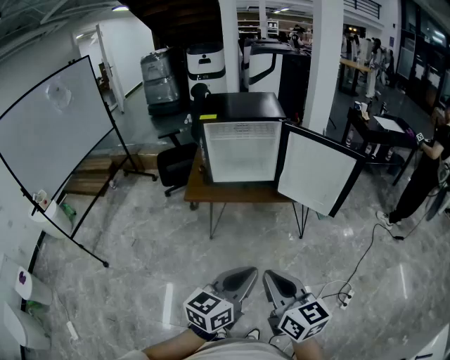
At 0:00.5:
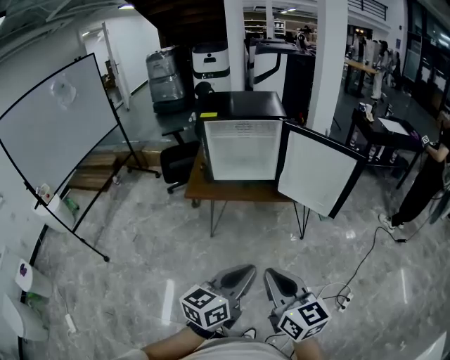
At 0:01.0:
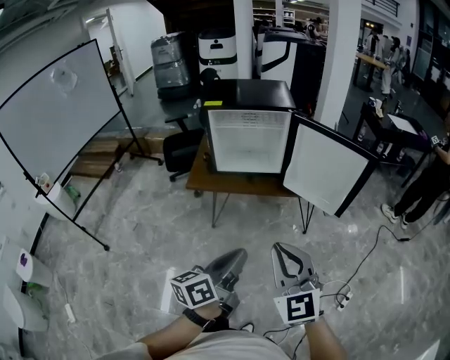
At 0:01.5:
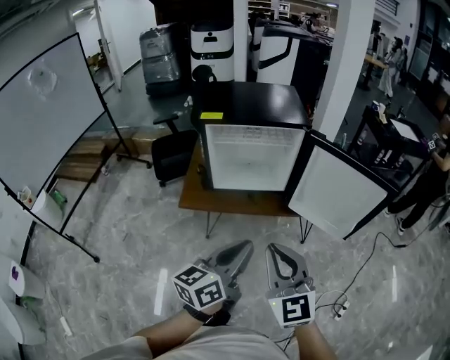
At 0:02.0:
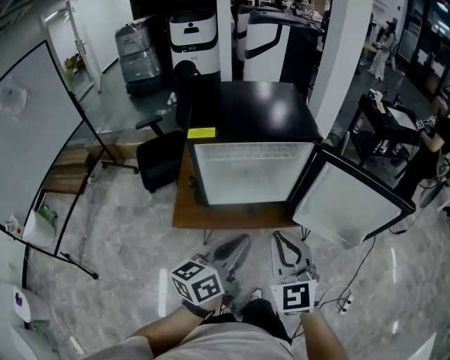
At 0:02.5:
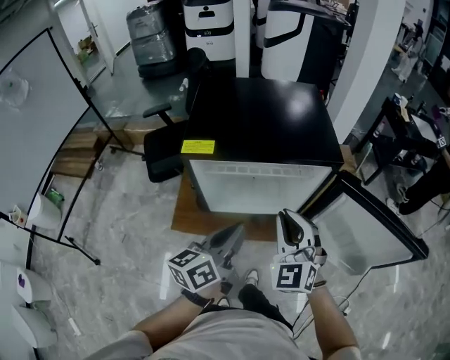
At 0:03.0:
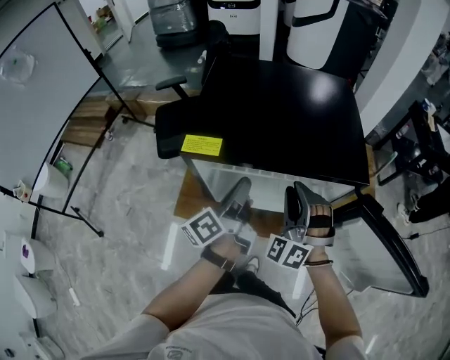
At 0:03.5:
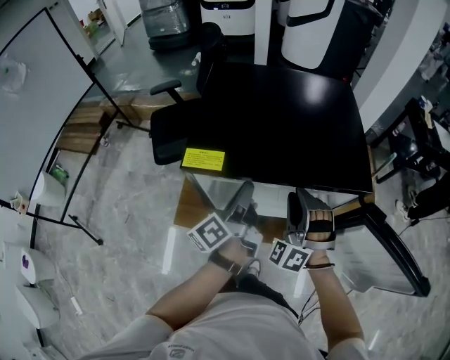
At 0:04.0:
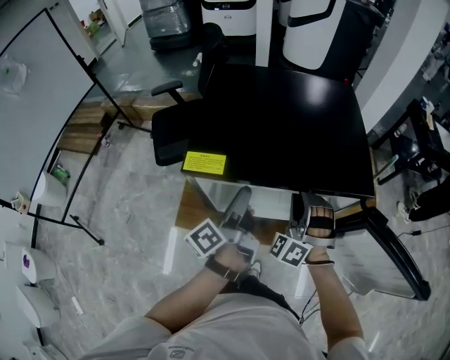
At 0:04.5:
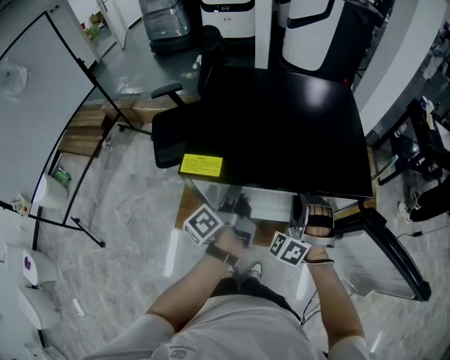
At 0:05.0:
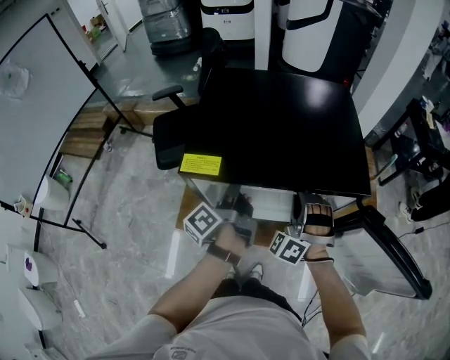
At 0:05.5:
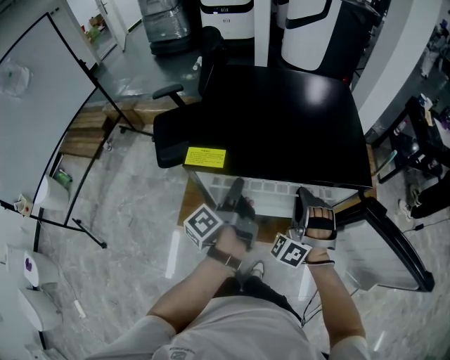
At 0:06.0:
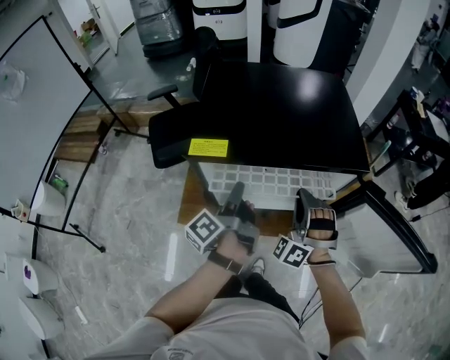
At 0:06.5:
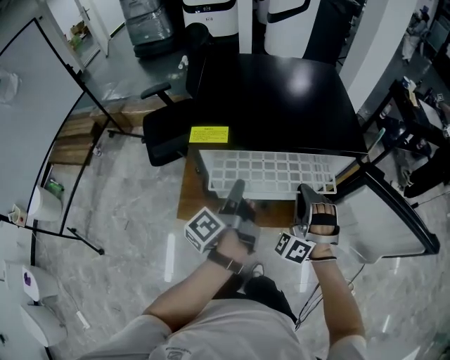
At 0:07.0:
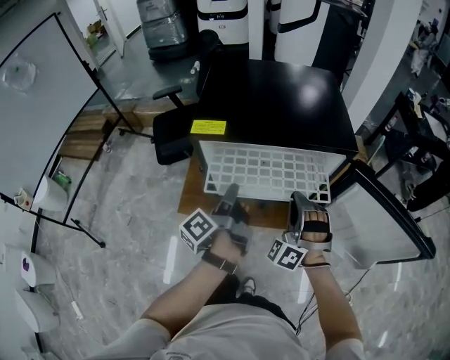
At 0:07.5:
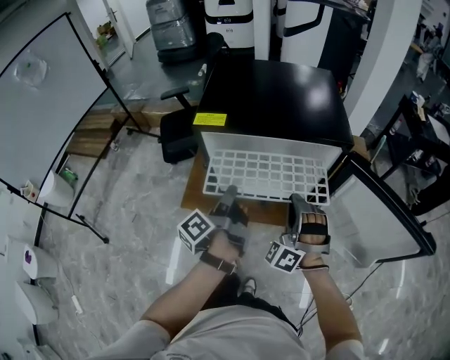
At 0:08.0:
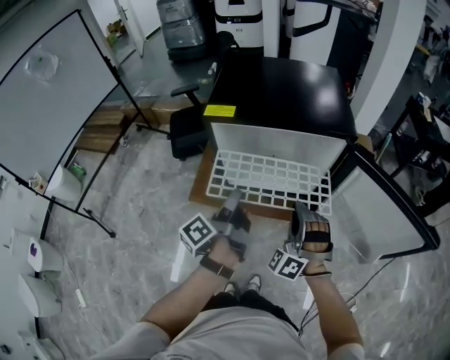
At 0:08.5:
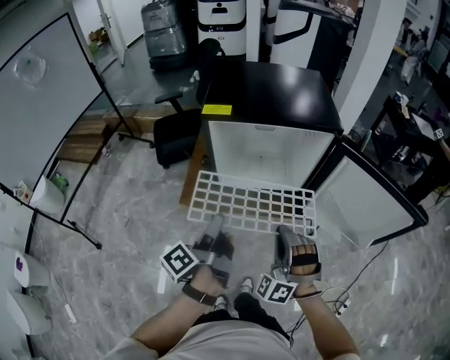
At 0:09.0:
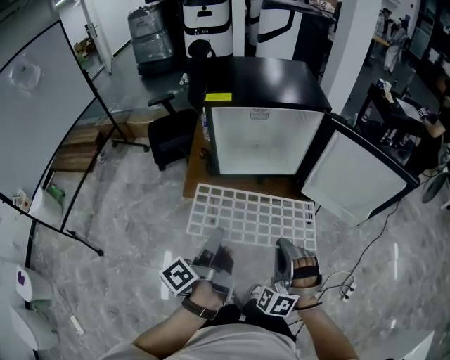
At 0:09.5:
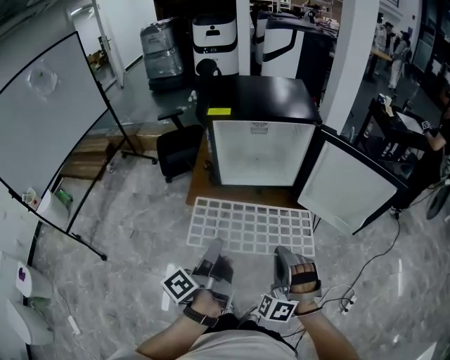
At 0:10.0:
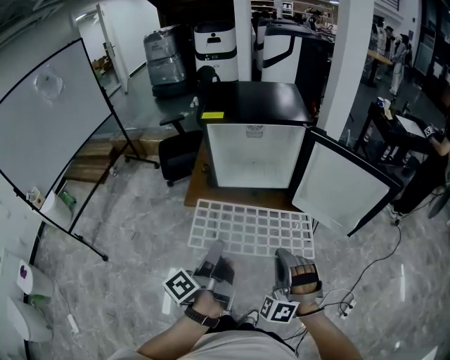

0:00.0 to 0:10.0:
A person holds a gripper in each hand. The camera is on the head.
0:00.0 to 0:02.0: Both grippers move forward, some 40 cm. The right gripper rotates roughly 40 degrees.
0:02.0 to 0:04.0: Both grippers travel together forward, about 30 cm. The left gripper turns by roughly 40 degrees, while the right gripper rolls counterclockwise, seen from behind, by roughly 50 degrees, and opens its fingers.
0:04.0 to 0:06.0: The right gripper shifts roughly 5 cm backward, and closes up.
0:06.0 to 0:08.0: Both grippers move backward, roughly 15 cm.
0:08.0 to 0:10.0: Both grippers move backward, approximately 25 cm.

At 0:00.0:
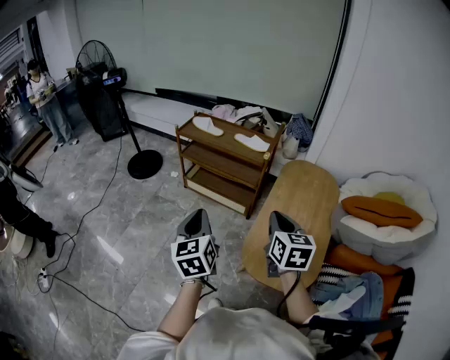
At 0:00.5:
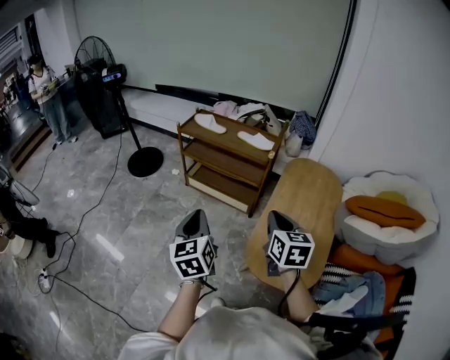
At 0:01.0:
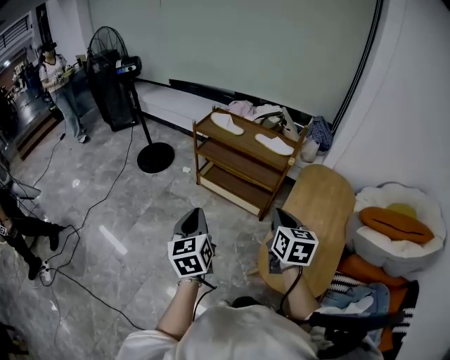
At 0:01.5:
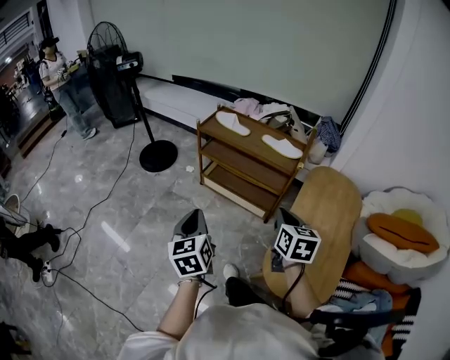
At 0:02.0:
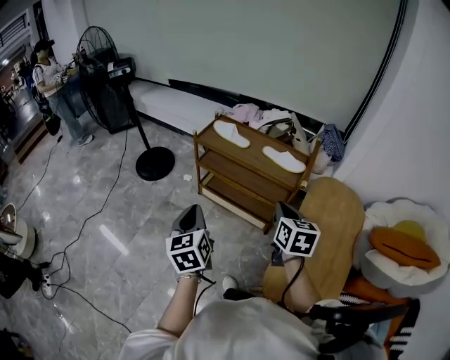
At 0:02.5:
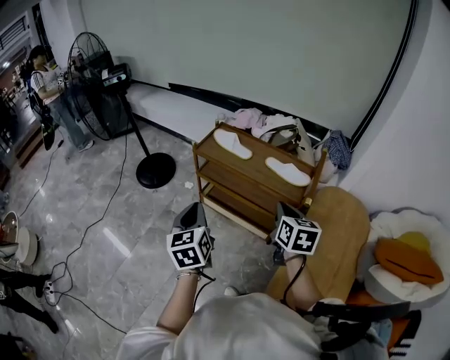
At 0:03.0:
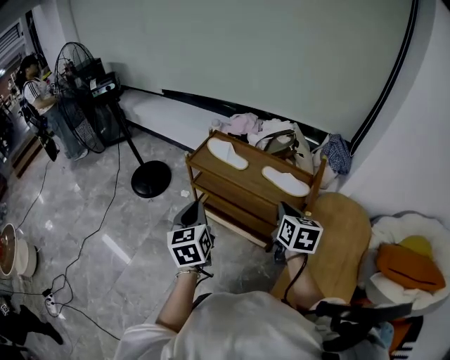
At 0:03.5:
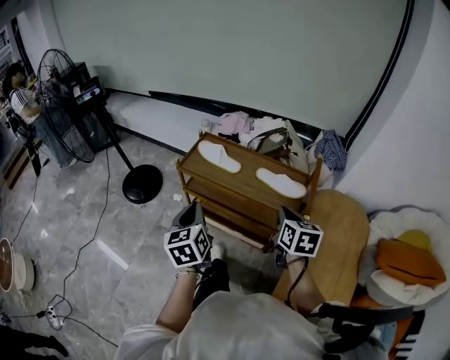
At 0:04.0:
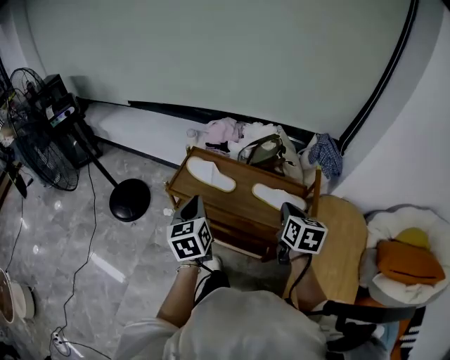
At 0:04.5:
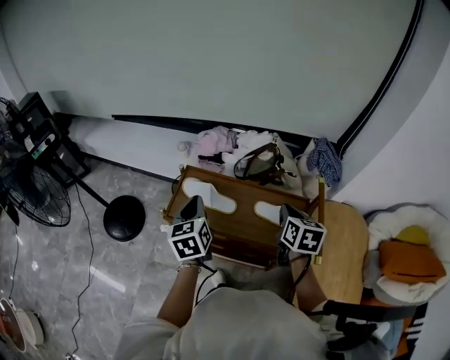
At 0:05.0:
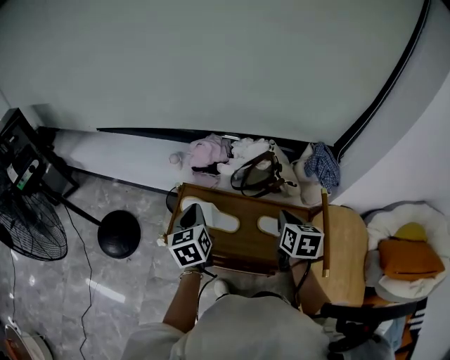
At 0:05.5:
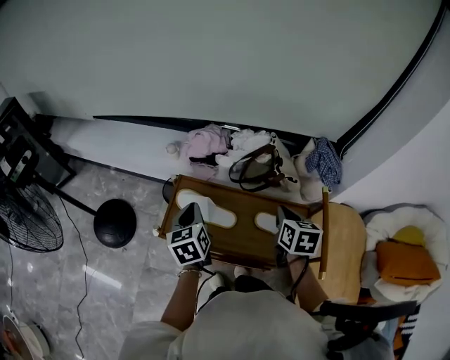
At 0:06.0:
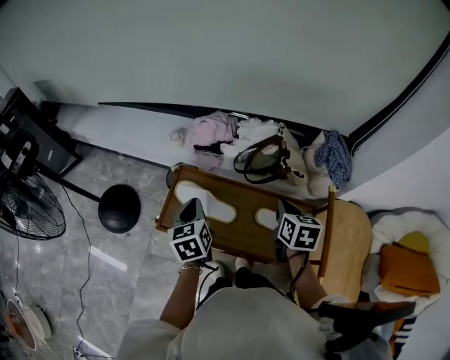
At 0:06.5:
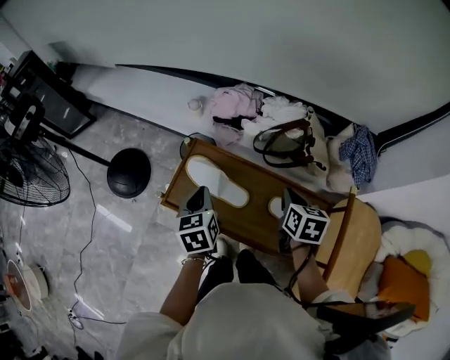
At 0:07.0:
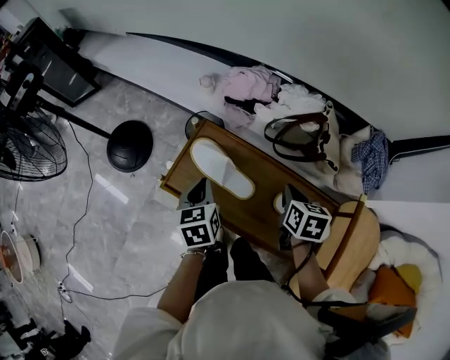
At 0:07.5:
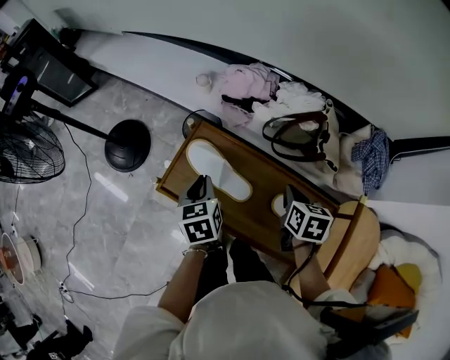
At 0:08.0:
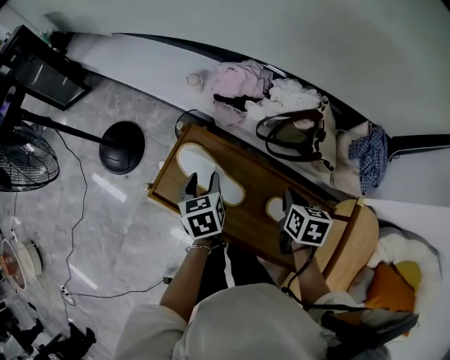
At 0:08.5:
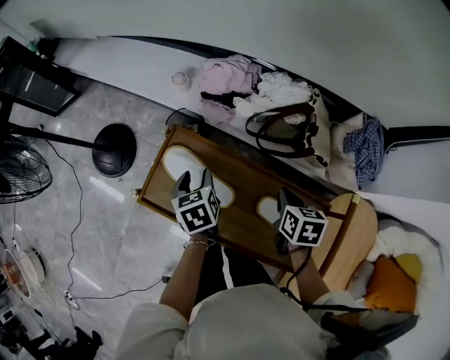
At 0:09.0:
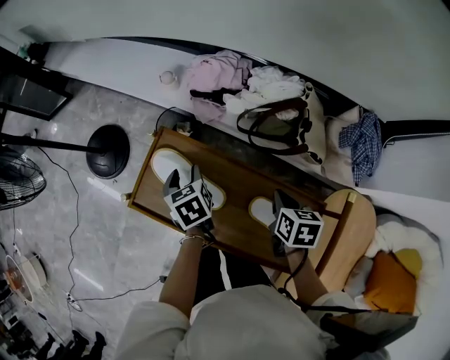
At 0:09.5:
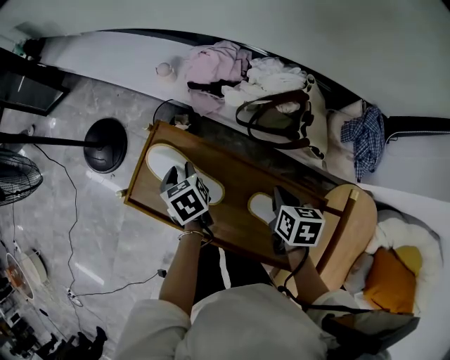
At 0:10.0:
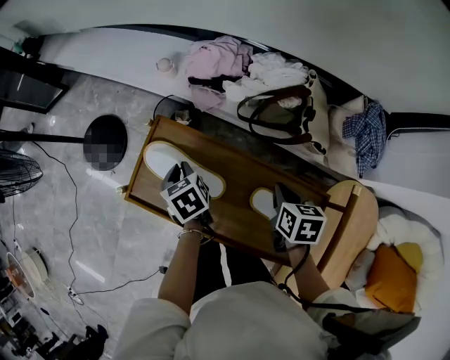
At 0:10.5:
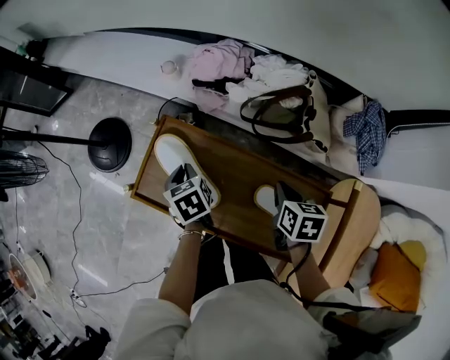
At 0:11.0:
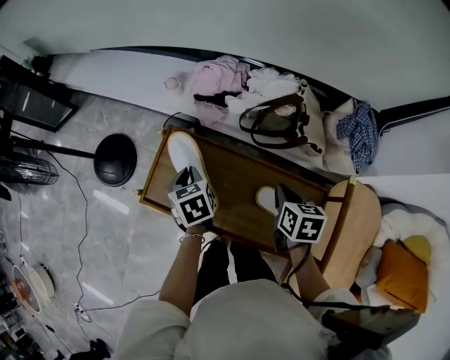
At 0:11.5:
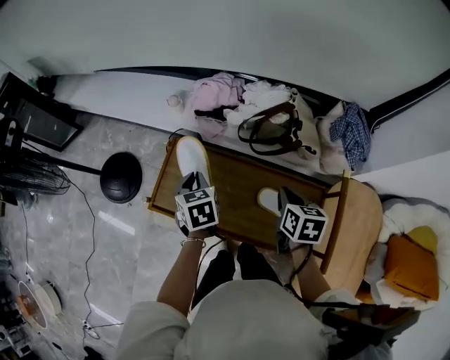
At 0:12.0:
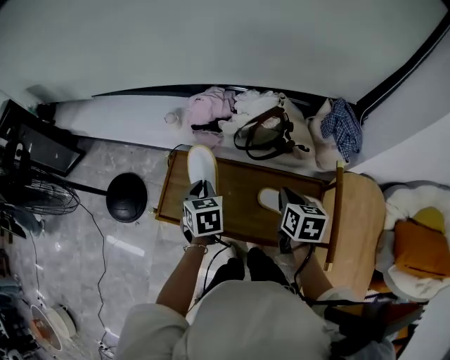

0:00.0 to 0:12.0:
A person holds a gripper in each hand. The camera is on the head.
0:00.0 to 0:02.0: The right gripper travels forward by approximately 25 cm, while the left gripper shifts some 25 cm forward and to the left.
0:02.0 to 0:04.0: Both grippers move forward, roughly 30 cm.
0:04.0 to 0:06.0: The left gripper shifts some 20 cm forward and downward. The right gripper goes about 20 cm forward.
0:06.0 to 0:08.0: Both grippers travel together downward, roughly 10 cm. The left gripper opens.
0:08.0 to 0:10.0: The left gripper is displaced downward by some 5 cm, and closes its fingers.
0:10.0 to 0:12.0: The two grippers go approximately 10 cm upward. The left gripper turns by some 40 degrees.

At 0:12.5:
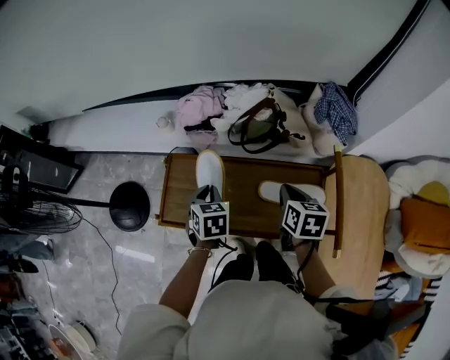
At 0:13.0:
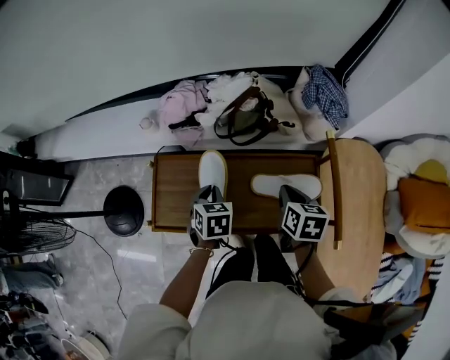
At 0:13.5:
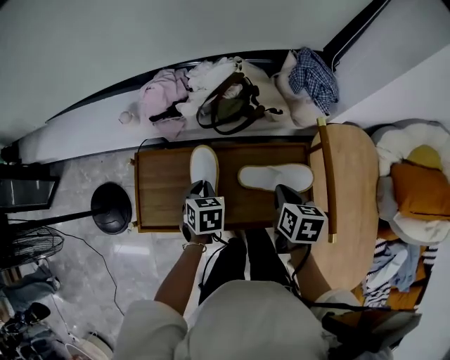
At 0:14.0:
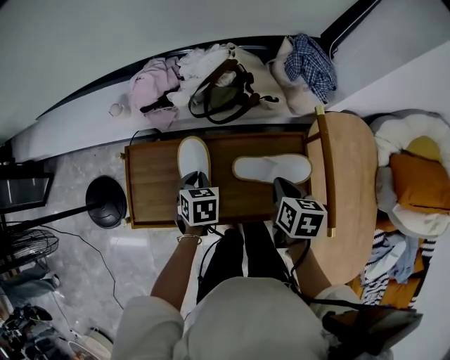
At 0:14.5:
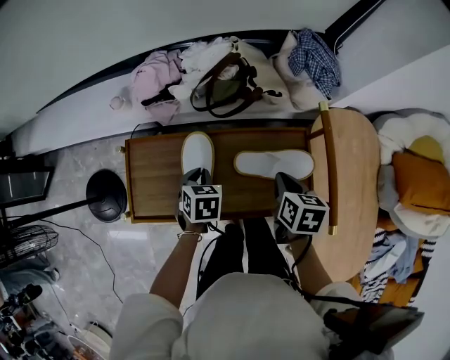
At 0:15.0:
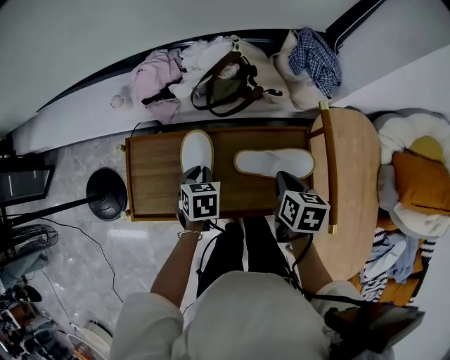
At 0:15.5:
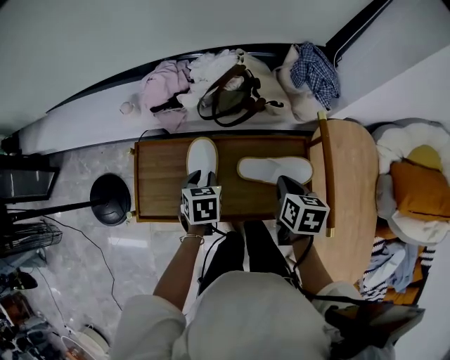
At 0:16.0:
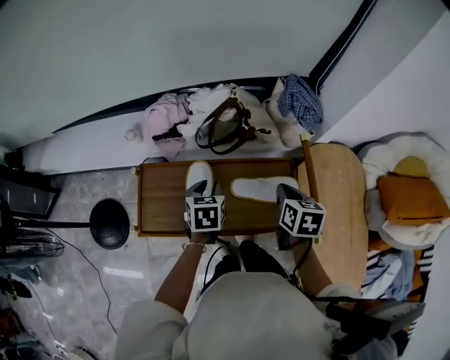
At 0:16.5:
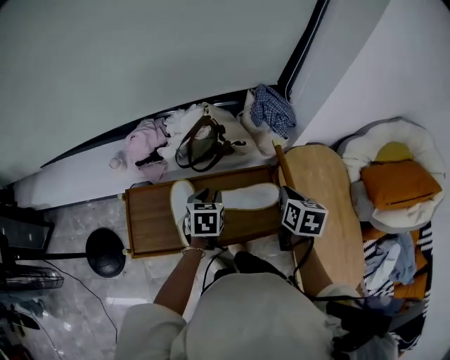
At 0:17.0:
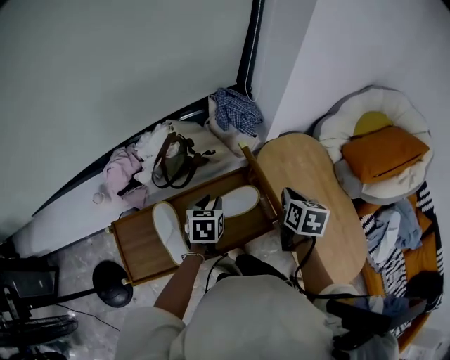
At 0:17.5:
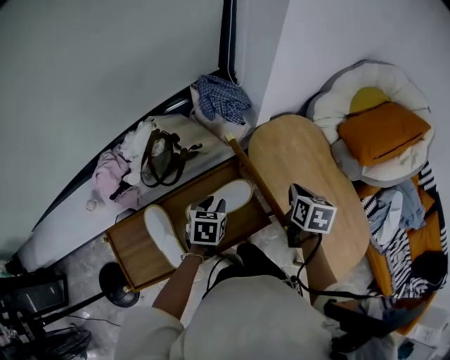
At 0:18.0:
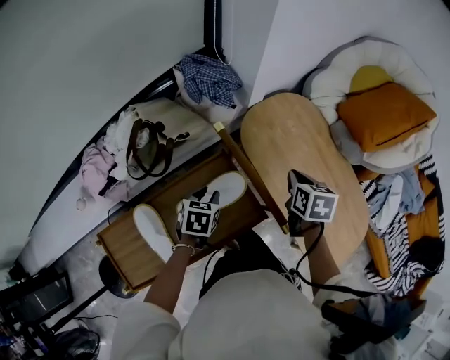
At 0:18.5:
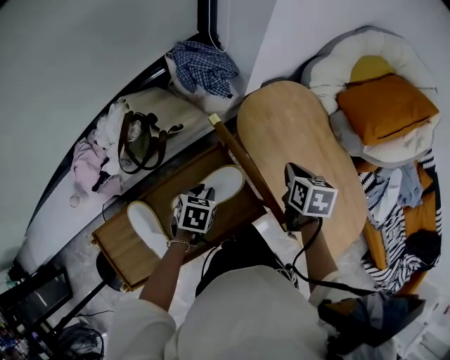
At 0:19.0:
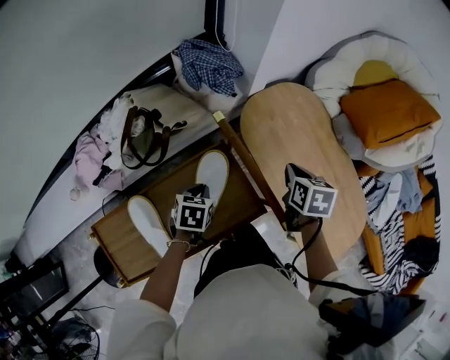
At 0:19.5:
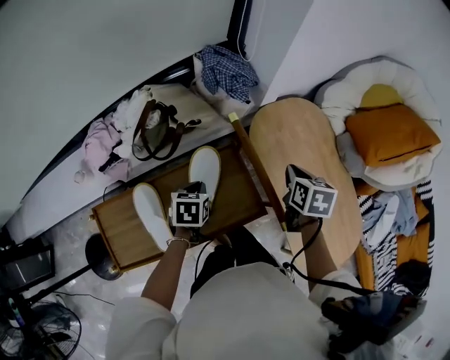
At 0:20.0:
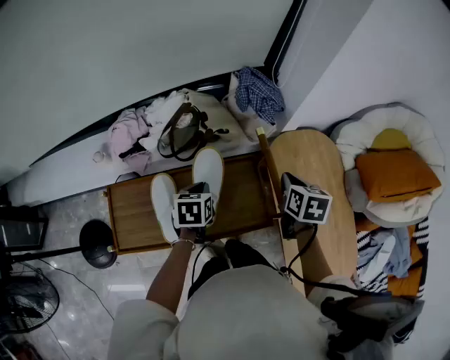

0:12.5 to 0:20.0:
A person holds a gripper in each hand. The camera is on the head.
0:12.5 to 0:14.5: Both grippers travel together downward and to the right, about 10 cm.
0:14.5 to 0:16.5: The grippers both shift upward and to the right by approximately 15 cm. The left gripper opens up.
0:16.5 to 0:18.0: The right gripper ends up approximately 20 cm from where it was, and turns by some 20 degrees. The left gripper changes place by roughly 15 cm, and changes its angle by about 30 degrees.
0:18.0 to 0:20.0: The right gripper changes place by approximately 10 cm, while the left gripper shifts by roughly 10 cm, changes its angle by roughly 30 degrees, and closes up.
